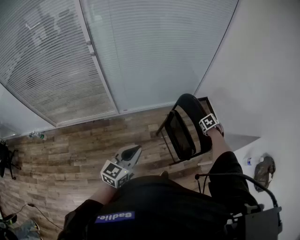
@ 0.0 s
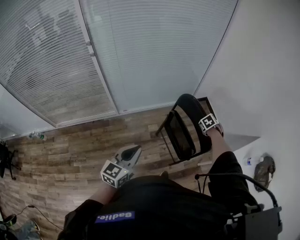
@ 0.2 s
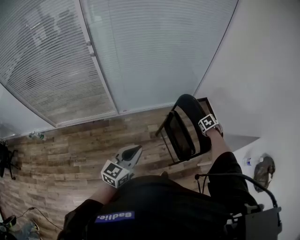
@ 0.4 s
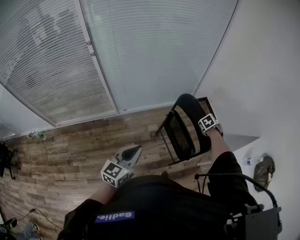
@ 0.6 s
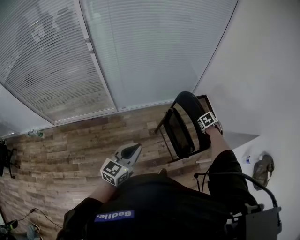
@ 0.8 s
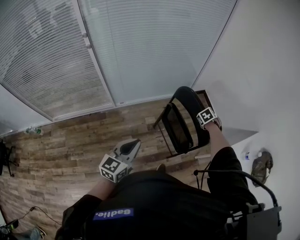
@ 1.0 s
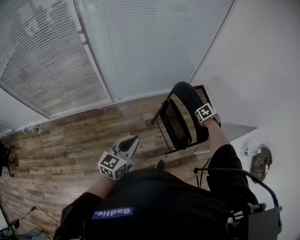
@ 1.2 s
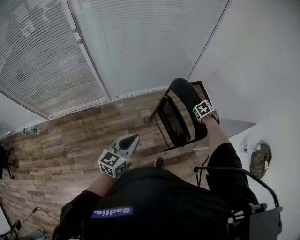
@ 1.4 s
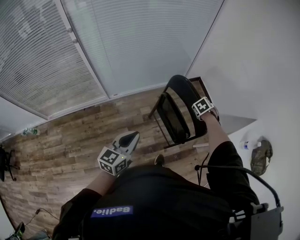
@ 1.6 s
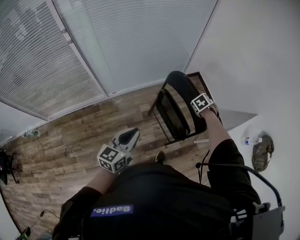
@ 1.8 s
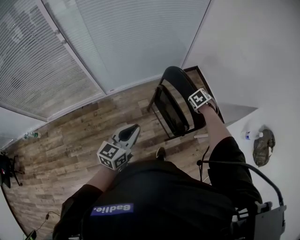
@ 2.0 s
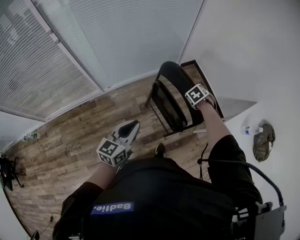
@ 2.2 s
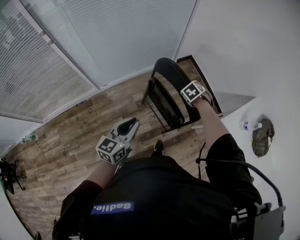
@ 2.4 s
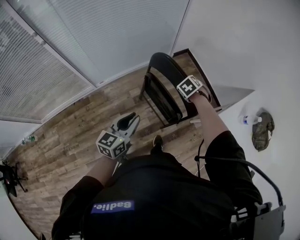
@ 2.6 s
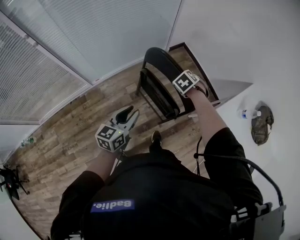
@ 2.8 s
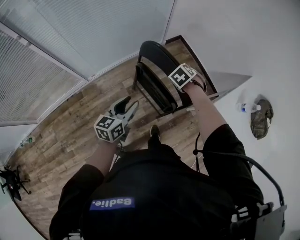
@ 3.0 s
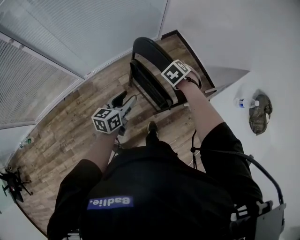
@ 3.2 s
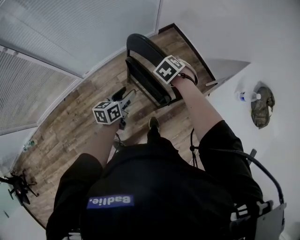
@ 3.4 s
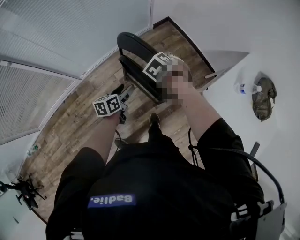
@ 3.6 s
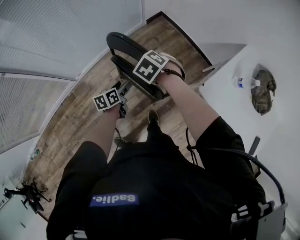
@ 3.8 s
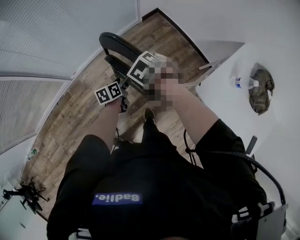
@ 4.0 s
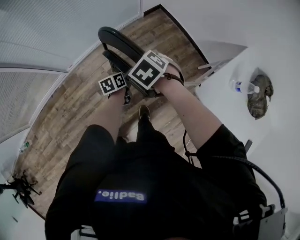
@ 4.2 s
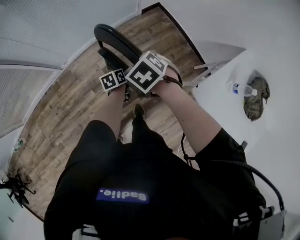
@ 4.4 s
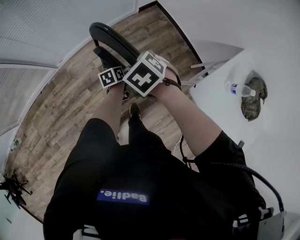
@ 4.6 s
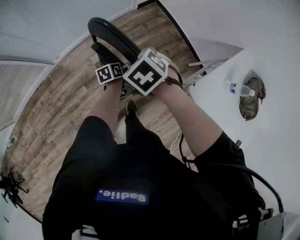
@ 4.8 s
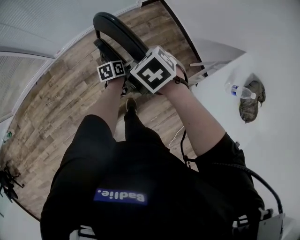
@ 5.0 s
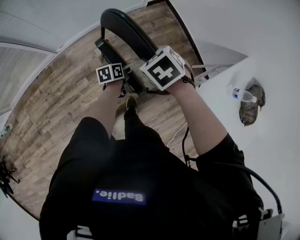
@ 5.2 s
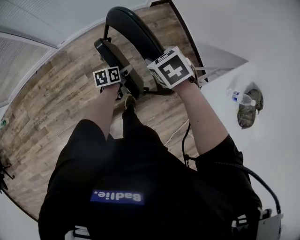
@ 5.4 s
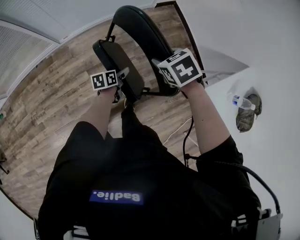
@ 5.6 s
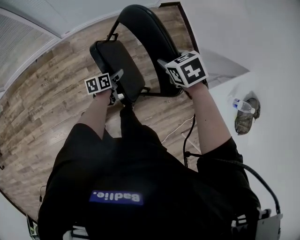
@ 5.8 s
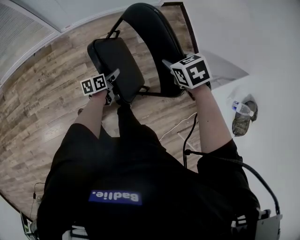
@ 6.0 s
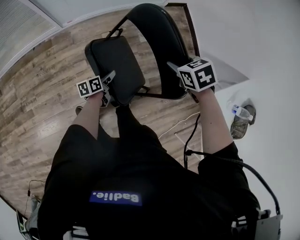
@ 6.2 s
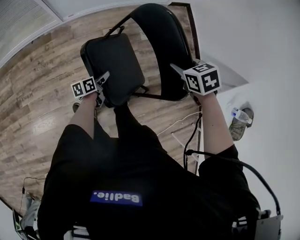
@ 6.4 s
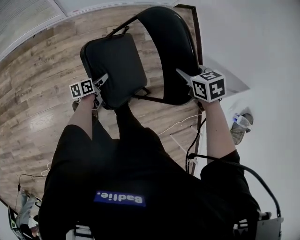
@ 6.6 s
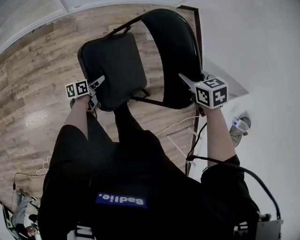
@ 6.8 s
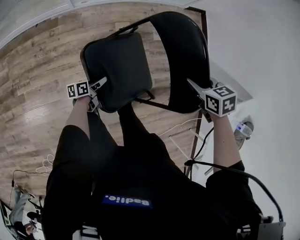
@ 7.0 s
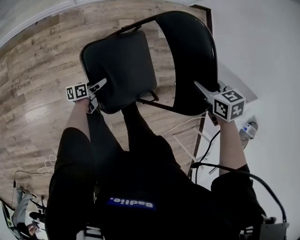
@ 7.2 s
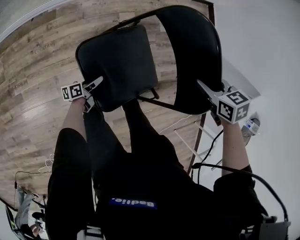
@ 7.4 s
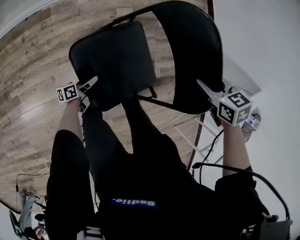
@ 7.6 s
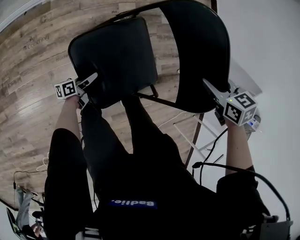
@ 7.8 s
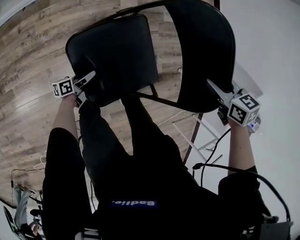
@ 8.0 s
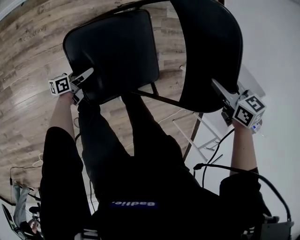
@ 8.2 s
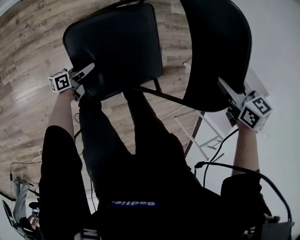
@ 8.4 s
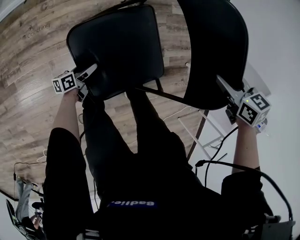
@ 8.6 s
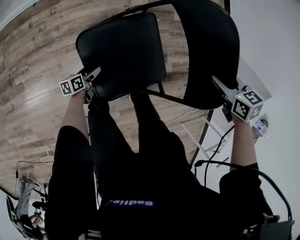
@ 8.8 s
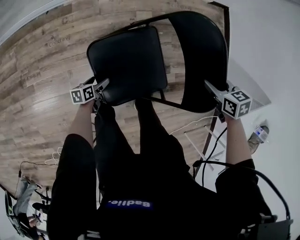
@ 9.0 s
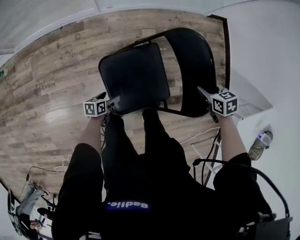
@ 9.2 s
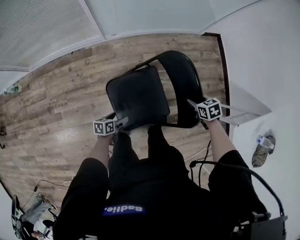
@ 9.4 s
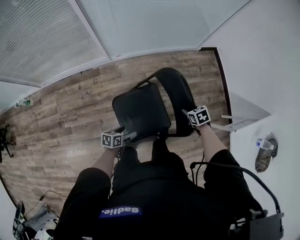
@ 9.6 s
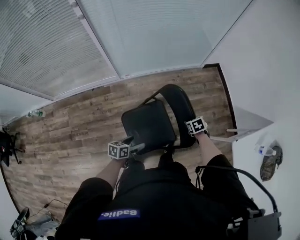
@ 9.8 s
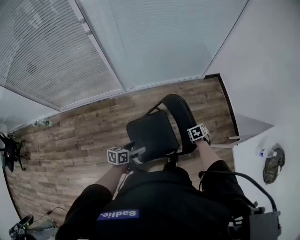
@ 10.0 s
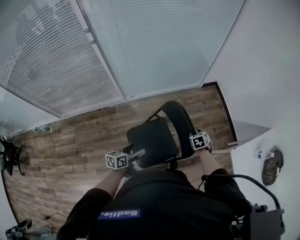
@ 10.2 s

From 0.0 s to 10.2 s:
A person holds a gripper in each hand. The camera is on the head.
From 0.0 s to 1.4 s: The grippers move only a little.
From 1.4 s to 3.0 s: The left gripper heads forward, downward and to the right, covering some 20 cm, and opens its fingers.
From 3.0 s to 4.4 s: The left gripper heads downward and forward, covering roughly 30 cm, swivels roughly 40 degrees, and opens its fingers.
From 4.4 s to 5.8 s: The left gripper is displaced to the left and backward by roughly 15 cm.
From 5.8 s to 7.2 s: The left gripper heads to the left, downward and backward, covering approximately 30 cm. Meanwhile the right gripper goes approximately 10 cm downward and to the left.
From 7.2 s to 8.8 s: The left gripper goes some 15 cm downward and to the left, and opens its fingers. The right gripper travels downward by about 5 cm.
From 8.8 s to 10.2 s: The right gripper shifts about 10 cm upward and to the right, and changes its angle by roughly 20 degrees. The left gripper goes about 50 cm upward, and swivels about 30 degrees.

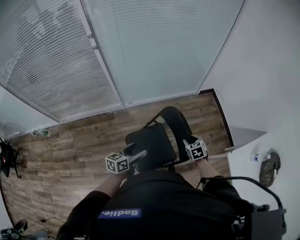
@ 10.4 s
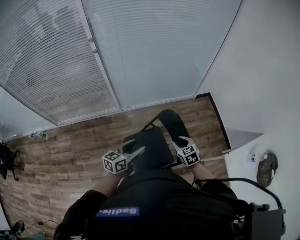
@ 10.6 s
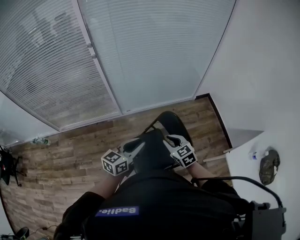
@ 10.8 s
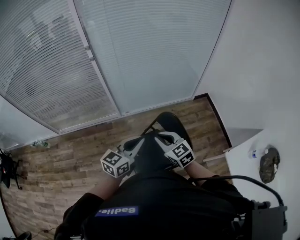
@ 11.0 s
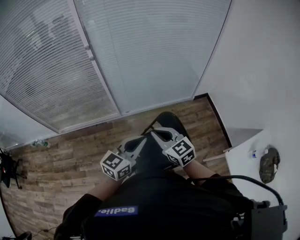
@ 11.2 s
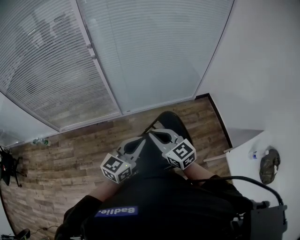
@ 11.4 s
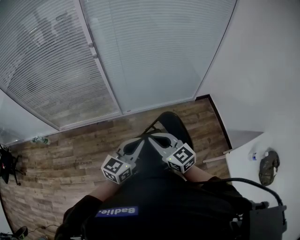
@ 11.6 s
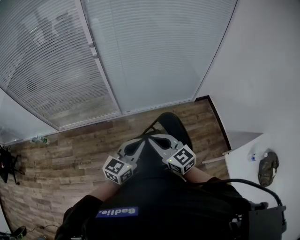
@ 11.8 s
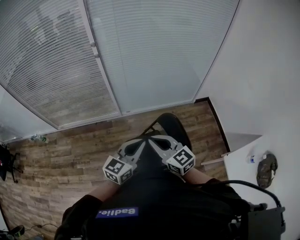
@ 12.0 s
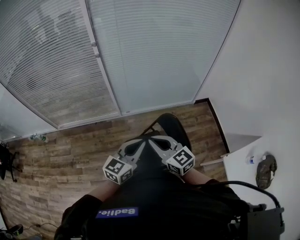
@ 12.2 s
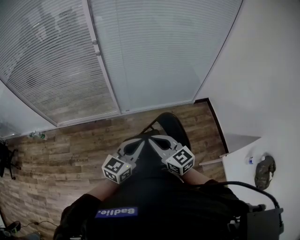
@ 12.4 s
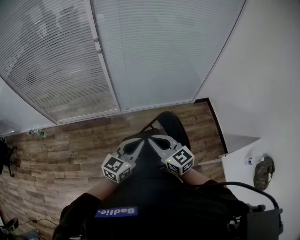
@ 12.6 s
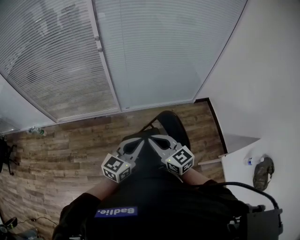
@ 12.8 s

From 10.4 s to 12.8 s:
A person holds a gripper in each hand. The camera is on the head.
From 10.4 s to 11.6 s: The left gripper is displaced upward by approximately 20 cm, turns by roughly 30 degrees, and closes; the right gripper travels upward and to the left by some 35 cm, tips its fingers upward by approximately 40 degrees, and closes its fingers.
From 11.6 s to 12.8 s: There are only small adjustments of the grippers.

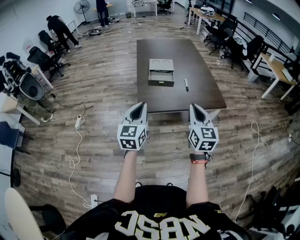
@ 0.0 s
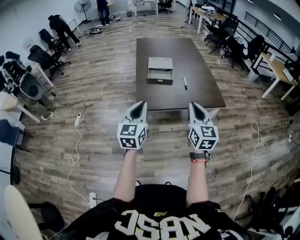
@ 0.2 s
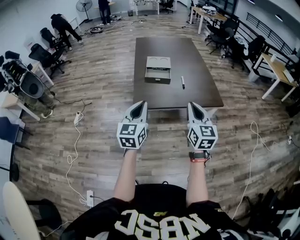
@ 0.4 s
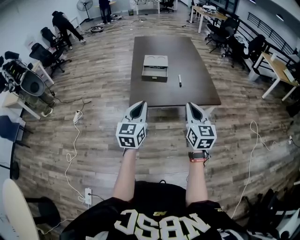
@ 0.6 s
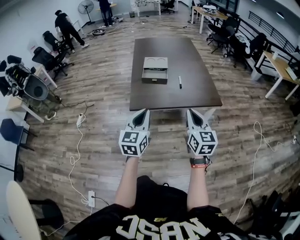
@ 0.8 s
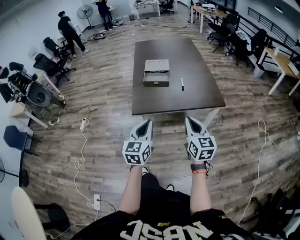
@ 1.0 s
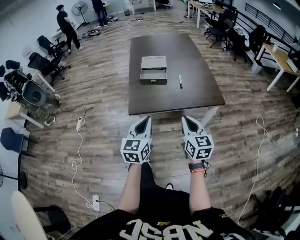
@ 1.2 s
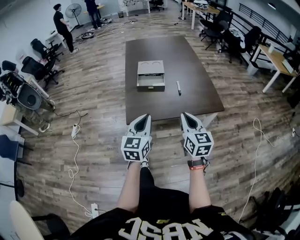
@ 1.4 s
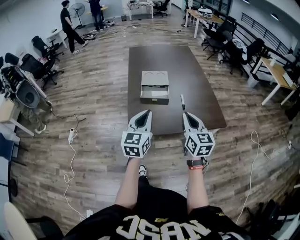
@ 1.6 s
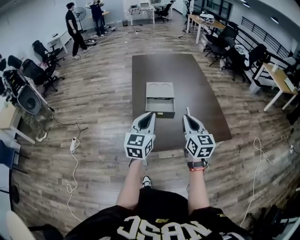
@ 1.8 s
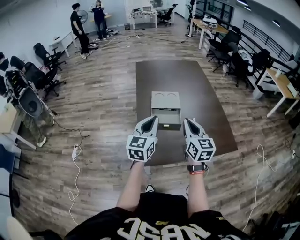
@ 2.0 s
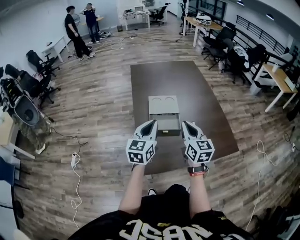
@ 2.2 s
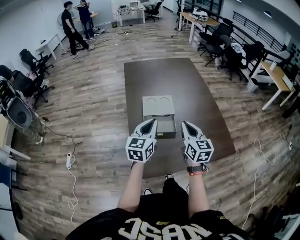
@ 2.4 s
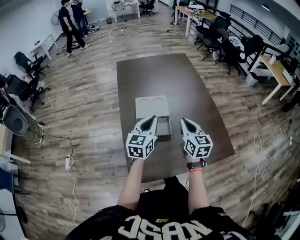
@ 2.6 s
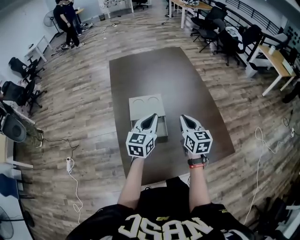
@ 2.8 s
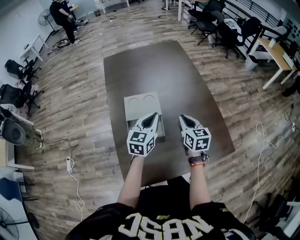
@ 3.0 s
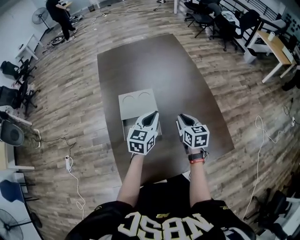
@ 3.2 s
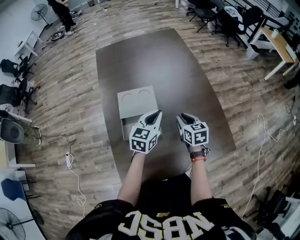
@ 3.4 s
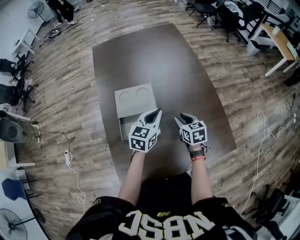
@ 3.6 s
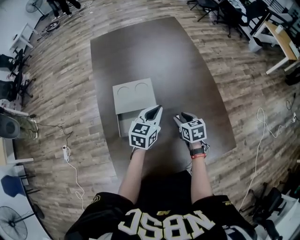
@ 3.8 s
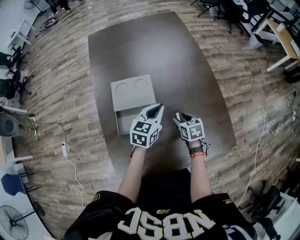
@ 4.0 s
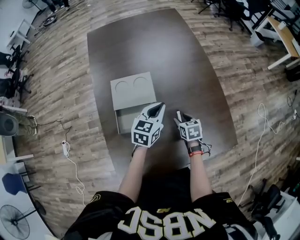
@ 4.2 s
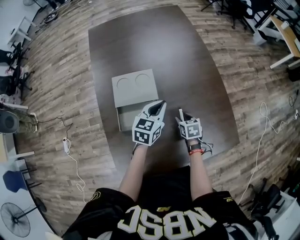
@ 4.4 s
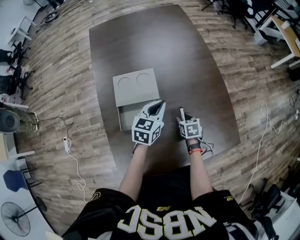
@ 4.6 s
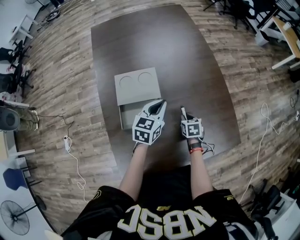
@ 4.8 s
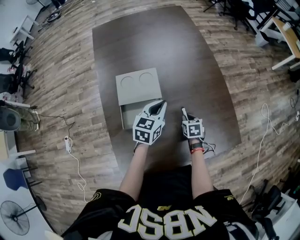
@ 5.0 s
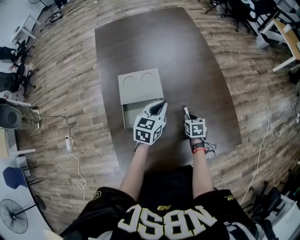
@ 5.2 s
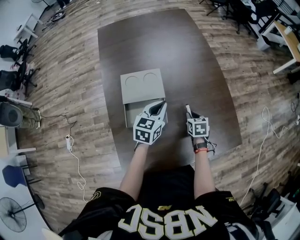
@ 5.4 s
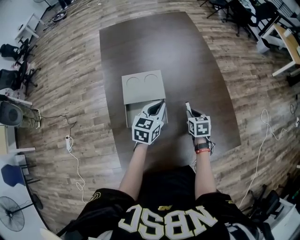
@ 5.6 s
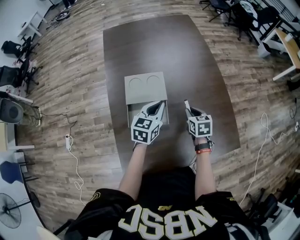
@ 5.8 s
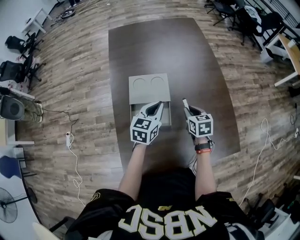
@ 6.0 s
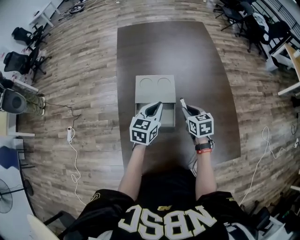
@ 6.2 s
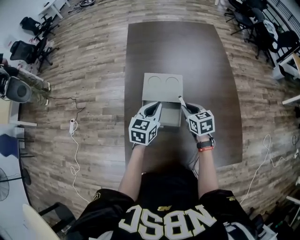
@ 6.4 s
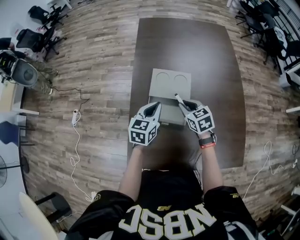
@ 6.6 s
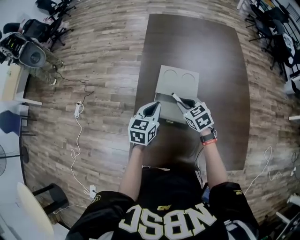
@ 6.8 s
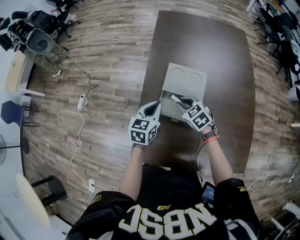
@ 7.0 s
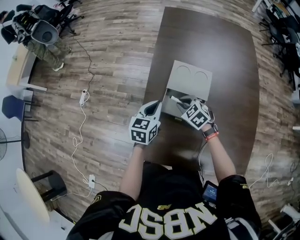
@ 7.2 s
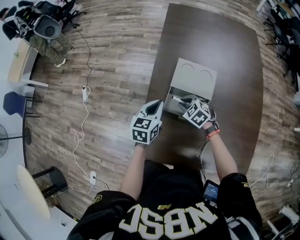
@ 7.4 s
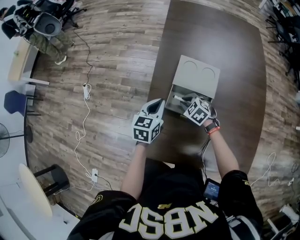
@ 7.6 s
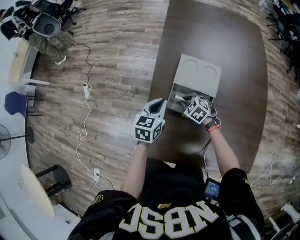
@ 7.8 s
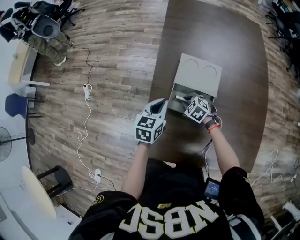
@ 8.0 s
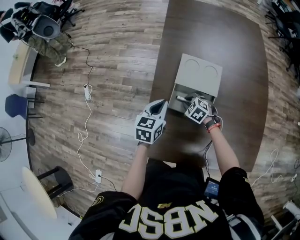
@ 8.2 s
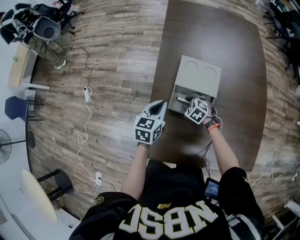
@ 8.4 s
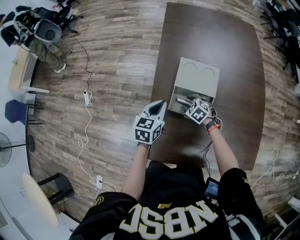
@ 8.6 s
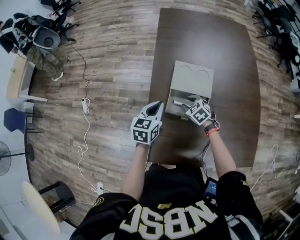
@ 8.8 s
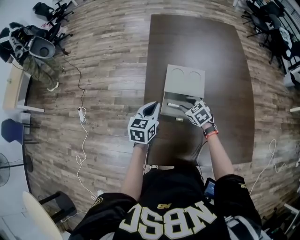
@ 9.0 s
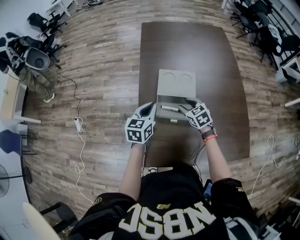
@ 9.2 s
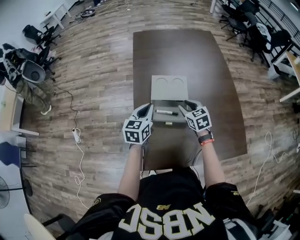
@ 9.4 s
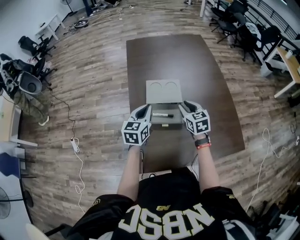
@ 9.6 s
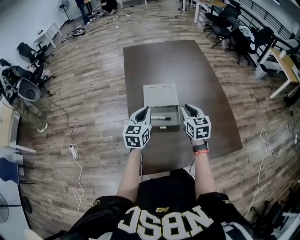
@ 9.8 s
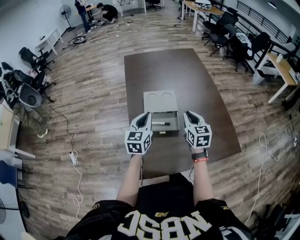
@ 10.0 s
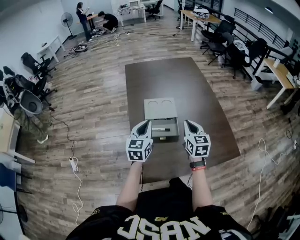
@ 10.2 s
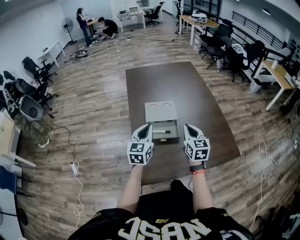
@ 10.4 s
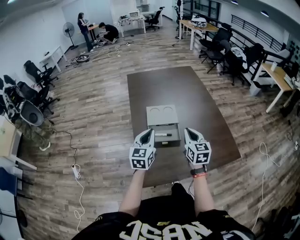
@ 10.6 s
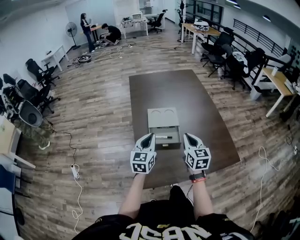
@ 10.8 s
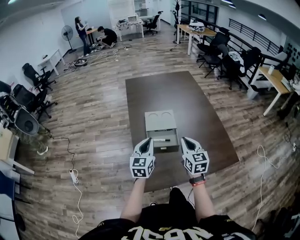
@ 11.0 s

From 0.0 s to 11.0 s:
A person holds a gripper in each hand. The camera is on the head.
From 0.0 s to 1.6 s: The left gripper shifts approximately 20 cm forward and to the right. The right gripper travels forward by roughly 15 cm.
From 1.6 s to 3.2 s: The right gripper is displaced forward and downward by roughly 40 cm, and turns by roughly 20 degrees; the left gripper heads forward, covering some 40 cm, and turns by roughly 20 degrees.
From 3.2 s to 4.8 s: The left gripper is displaced downward by some 10 cm. The right gripper moves downward, some 20 cm, swivels some 30 degrees, and opens and closes again.
From 4.8 s to 6.2 s: The right gripper travels upward and to the left by some 15 cm, and rotates some 20 degrees. Meanwhile the left gripper goes some 10 cm to the left.
From 6.2 s to 7.8 s: The right gripper shifts by about 25 cm, and rolls counterclockwise, seen from behind, by about 50 degrees. The left gripper changes place by about 20 cm, and swivels some 20 degrees.
From 7.8 s to 9.4 s: The right gripper is displaced upward by some 15 cm, and rotates some 50 degrees. Meanwhile the left gripper is displaced upward by about 10 cm.
From 9.4 s to 11.0 s: The left gripper moves backward and upward, about 10 cm. The right gripper is displaced backward and upward by about 20 cm, rotates roughly 30 degrees, and closes.
